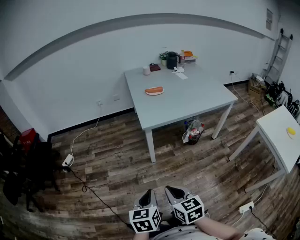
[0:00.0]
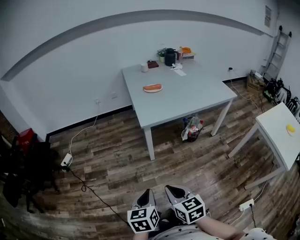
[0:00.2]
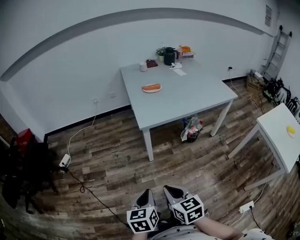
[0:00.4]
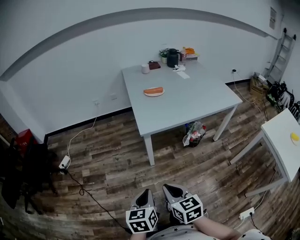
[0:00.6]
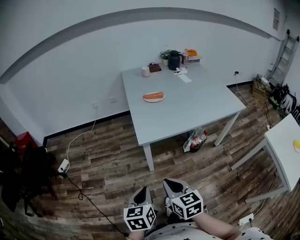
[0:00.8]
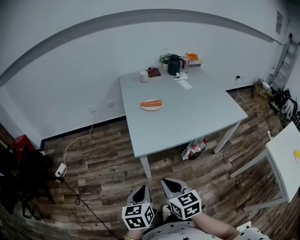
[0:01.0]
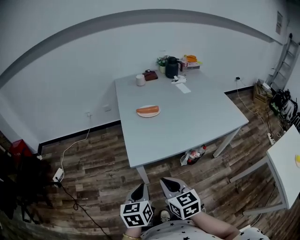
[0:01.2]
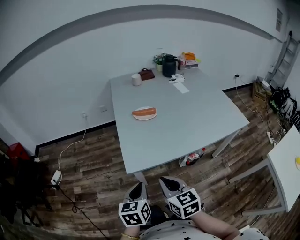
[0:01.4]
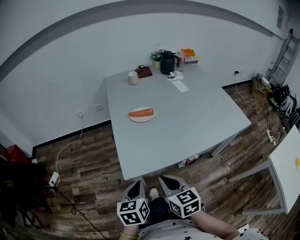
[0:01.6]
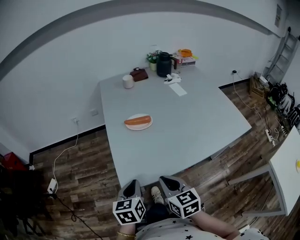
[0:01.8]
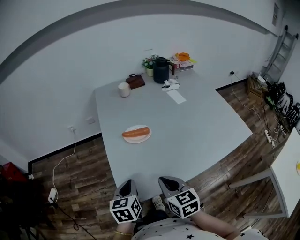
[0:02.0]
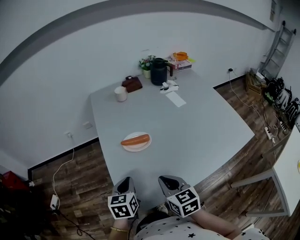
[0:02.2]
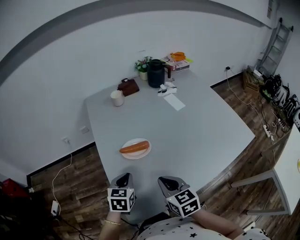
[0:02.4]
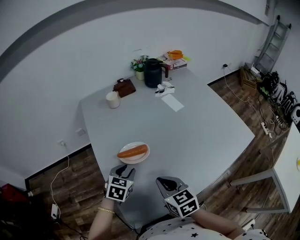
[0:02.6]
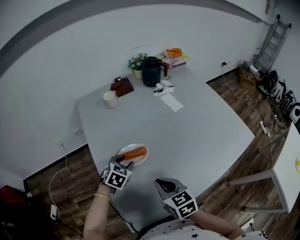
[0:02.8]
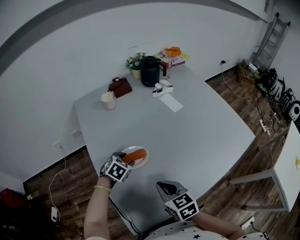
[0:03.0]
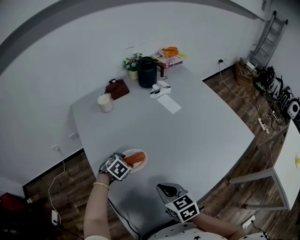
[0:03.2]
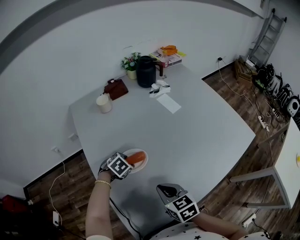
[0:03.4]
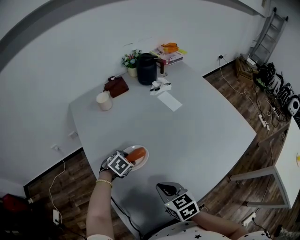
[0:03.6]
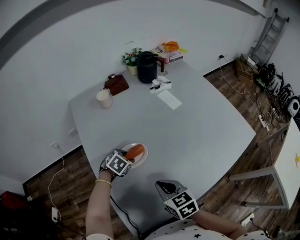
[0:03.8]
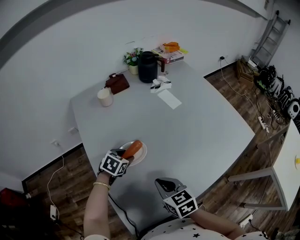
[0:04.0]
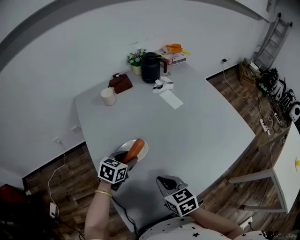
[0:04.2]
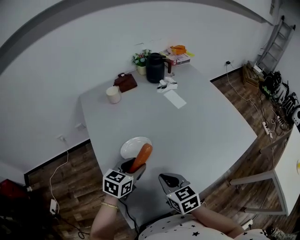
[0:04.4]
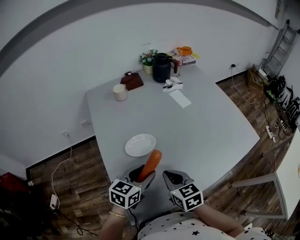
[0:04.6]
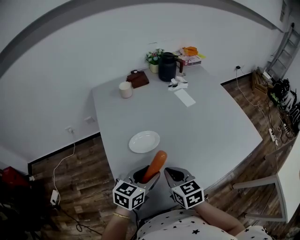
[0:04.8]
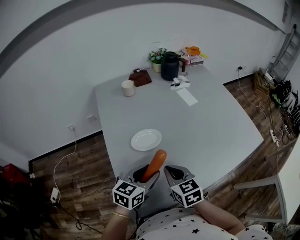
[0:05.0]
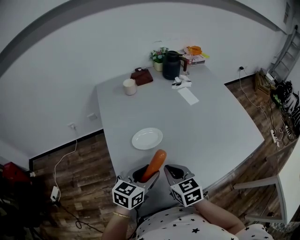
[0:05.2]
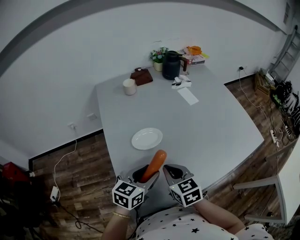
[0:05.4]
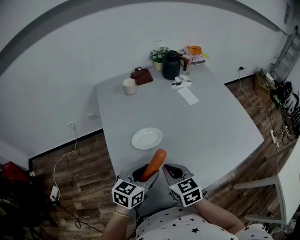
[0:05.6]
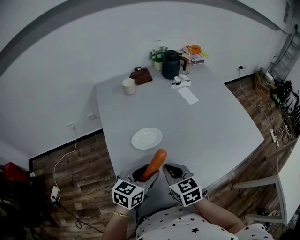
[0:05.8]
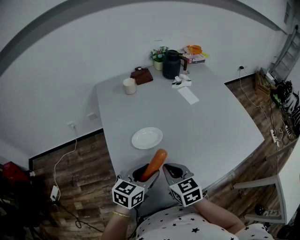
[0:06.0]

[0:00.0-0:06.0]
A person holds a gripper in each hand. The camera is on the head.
0:00.0 to 0:01.6: The two grippers travel together, forward, about 40 cm.
0:01.6 to 0:03.0: The right gripper heads forward, covering about 30 cm, while the left gripper is displaced forward by about 50 cm, rolls clockwise, seen from behind, by some 50 degrees, and opens its fingers.
0:03.0 to 0:04.4: The left gripper goes about 10 cm upward and backward, and turns by roughly 30 degrees.
0:04.4 to 0:06.0: The left gripper goes roughly 10 cm backward.

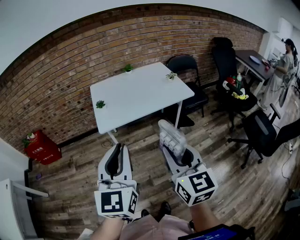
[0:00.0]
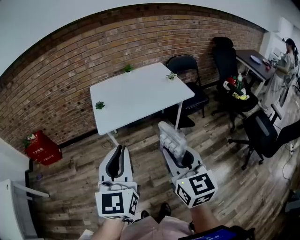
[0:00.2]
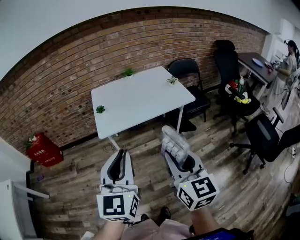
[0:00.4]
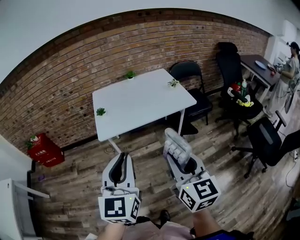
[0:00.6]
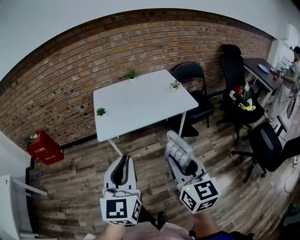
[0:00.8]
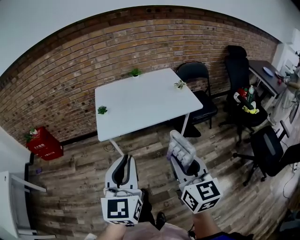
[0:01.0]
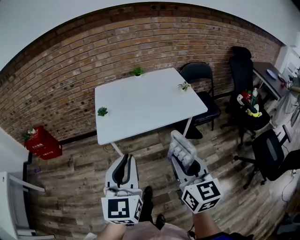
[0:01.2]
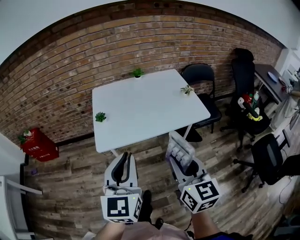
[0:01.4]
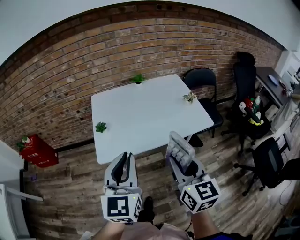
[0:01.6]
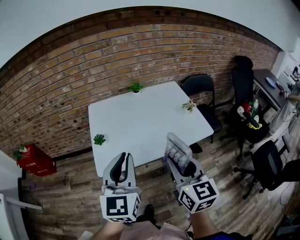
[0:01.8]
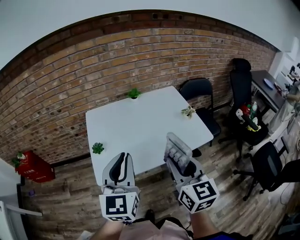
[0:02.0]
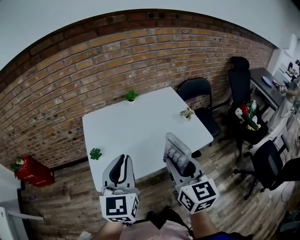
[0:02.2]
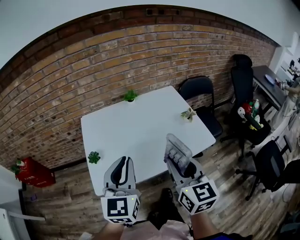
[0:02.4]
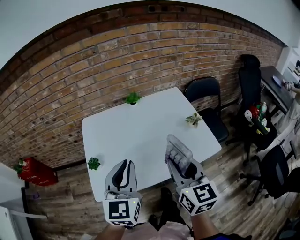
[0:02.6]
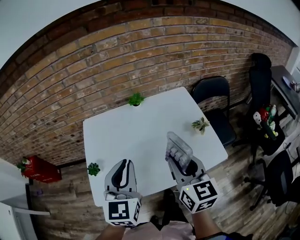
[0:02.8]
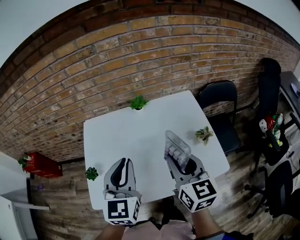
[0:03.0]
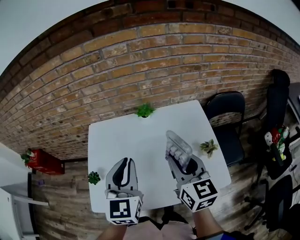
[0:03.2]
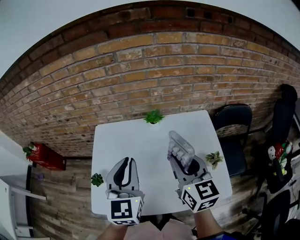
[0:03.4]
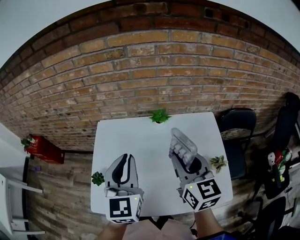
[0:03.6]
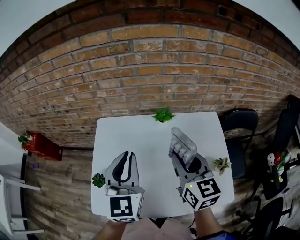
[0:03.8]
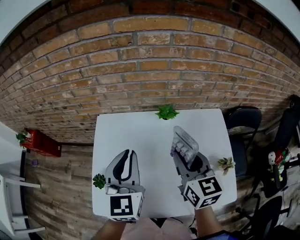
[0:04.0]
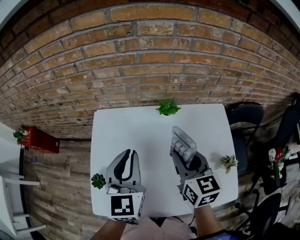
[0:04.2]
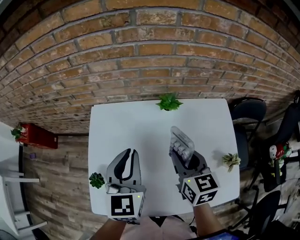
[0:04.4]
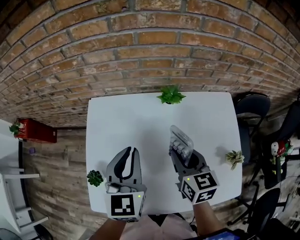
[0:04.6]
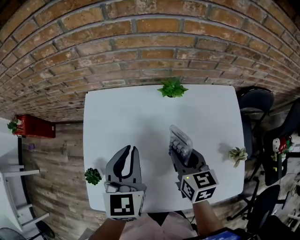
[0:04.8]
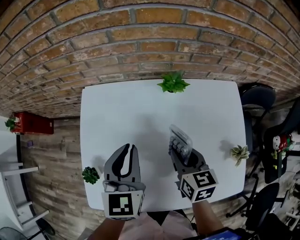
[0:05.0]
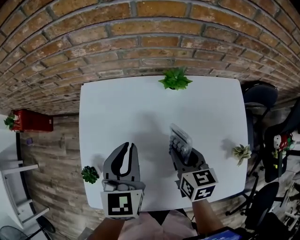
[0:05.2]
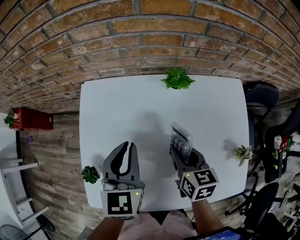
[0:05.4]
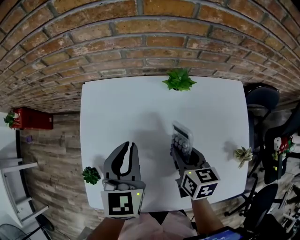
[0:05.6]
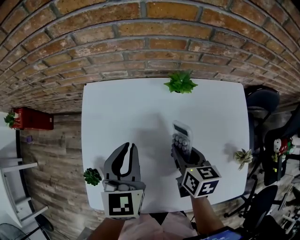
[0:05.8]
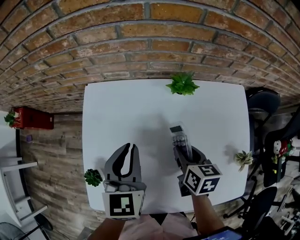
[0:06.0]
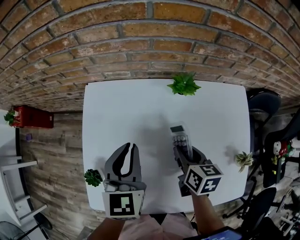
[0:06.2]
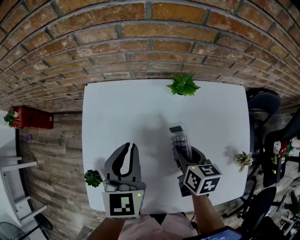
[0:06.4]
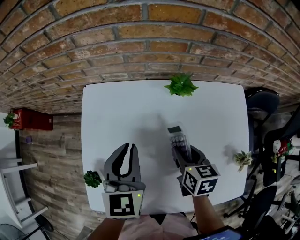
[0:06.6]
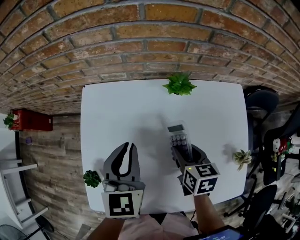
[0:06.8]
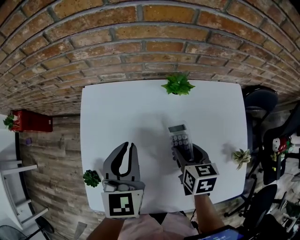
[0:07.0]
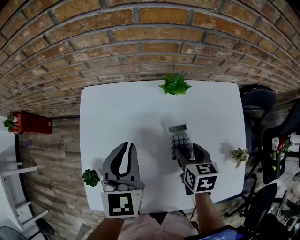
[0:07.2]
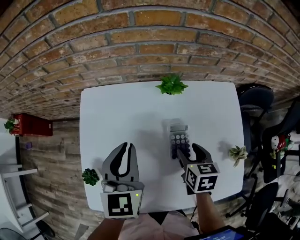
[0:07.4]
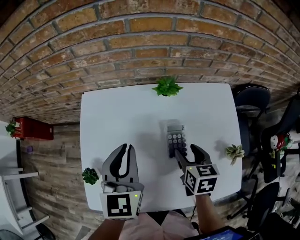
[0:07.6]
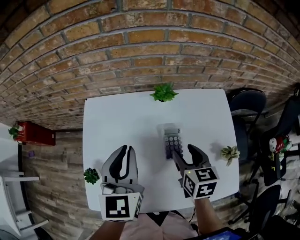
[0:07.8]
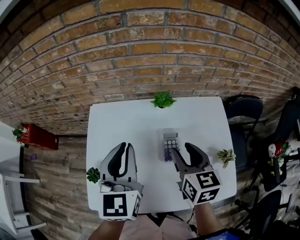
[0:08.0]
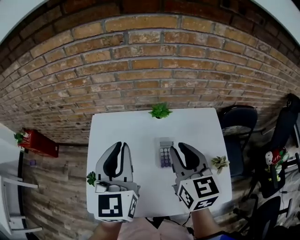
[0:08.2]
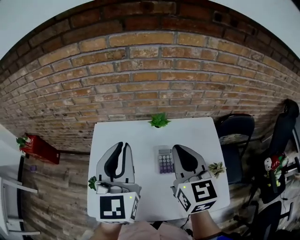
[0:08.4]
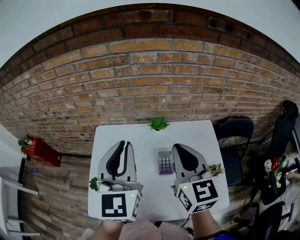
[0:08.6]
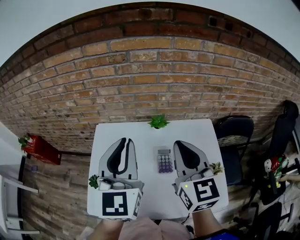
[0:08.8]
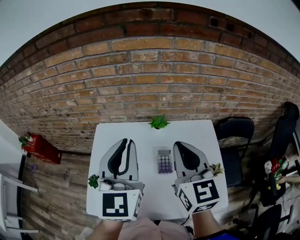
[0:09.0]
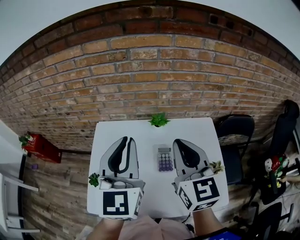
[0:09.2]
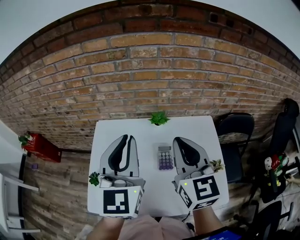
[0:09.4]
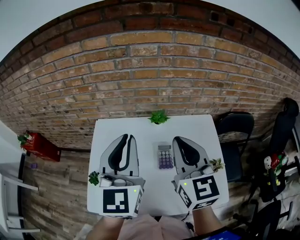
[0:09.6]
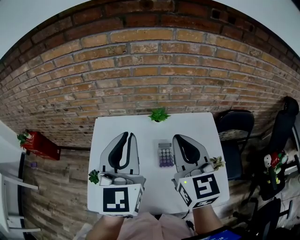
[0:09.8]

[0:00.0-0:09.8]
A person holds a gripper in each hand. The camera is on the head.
0:00.0 to 0:01.4: Both grippers move forward, about 15 cm.
0:01.4 to 0:02.8: The grippers both shift forward by about 30 cm.
0:02.8 to 0:04.2: The two grippers go roughly 20 cm forward.
0:04.2 to 0:05.6: The left gripper shifts roughly 10 cm downward. The right gripper shifts some 15 cm downward, and turns by approximately 20 degrees.
0:05.6 to 0:07.0: The grippers move only a little.
0:07.0 to 0:08.4: Both grippers travel together upward, roughly 25 cm. The left gripper changes its angle by roughly 20 degrees; the right gripper tilts its fingers some 40 degrees upward, and closes up.
0:08.4 to 0:09.8: The grippers stay close to where they were, moving slightly.

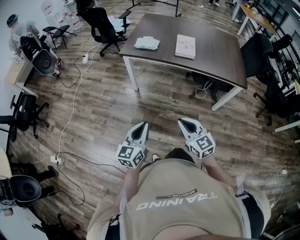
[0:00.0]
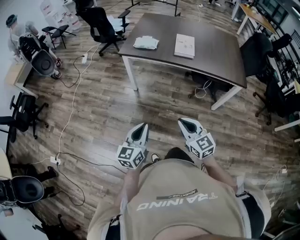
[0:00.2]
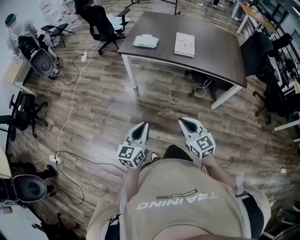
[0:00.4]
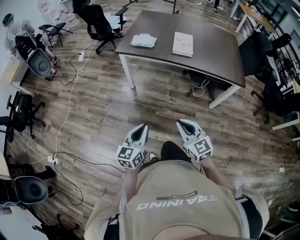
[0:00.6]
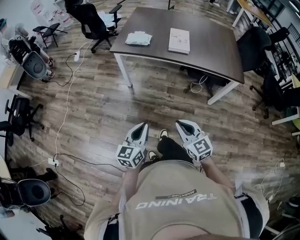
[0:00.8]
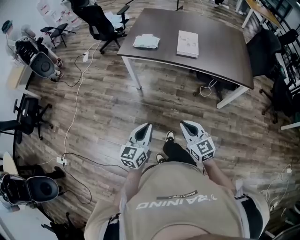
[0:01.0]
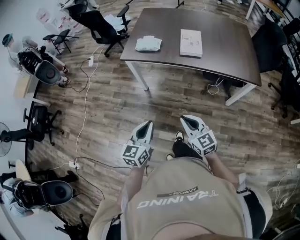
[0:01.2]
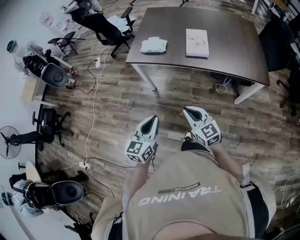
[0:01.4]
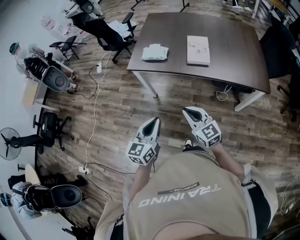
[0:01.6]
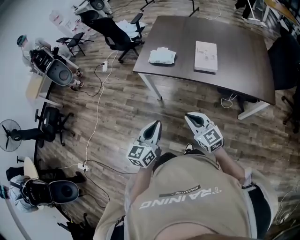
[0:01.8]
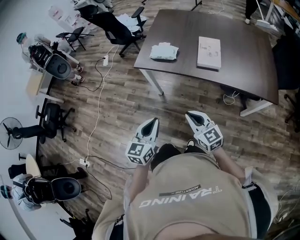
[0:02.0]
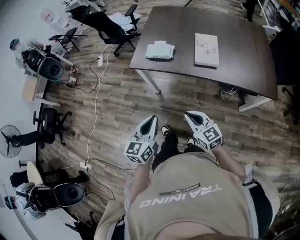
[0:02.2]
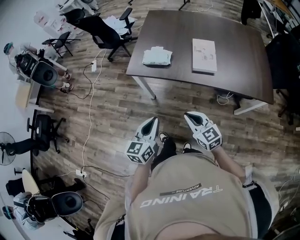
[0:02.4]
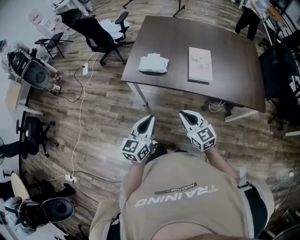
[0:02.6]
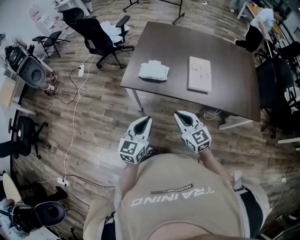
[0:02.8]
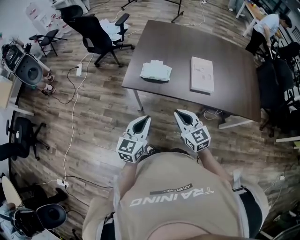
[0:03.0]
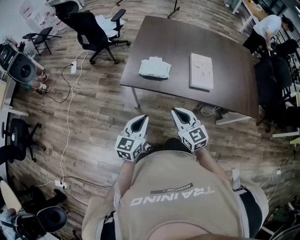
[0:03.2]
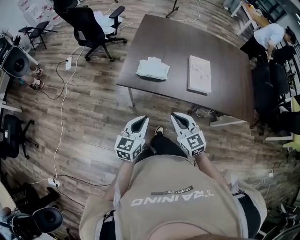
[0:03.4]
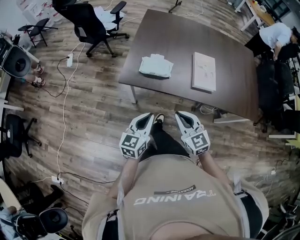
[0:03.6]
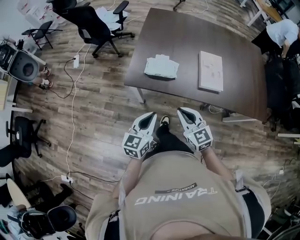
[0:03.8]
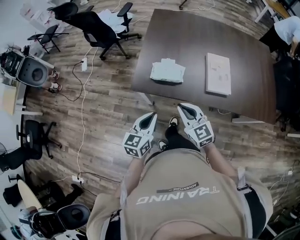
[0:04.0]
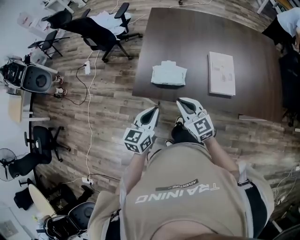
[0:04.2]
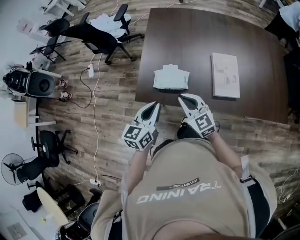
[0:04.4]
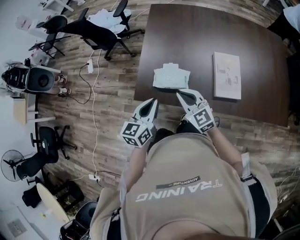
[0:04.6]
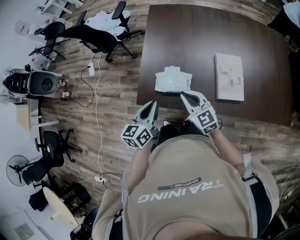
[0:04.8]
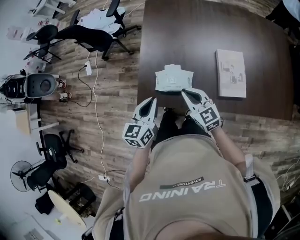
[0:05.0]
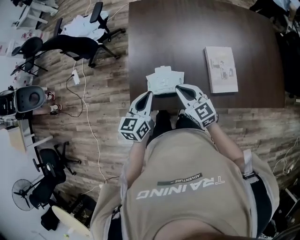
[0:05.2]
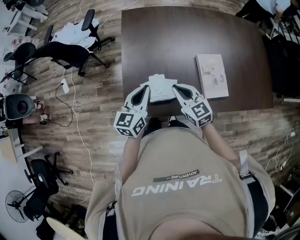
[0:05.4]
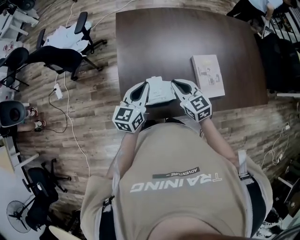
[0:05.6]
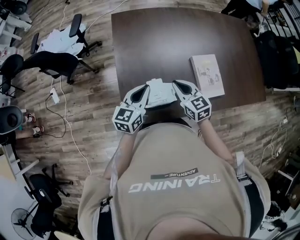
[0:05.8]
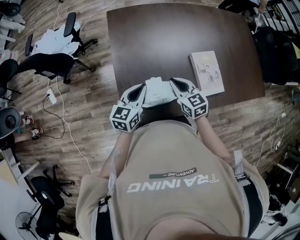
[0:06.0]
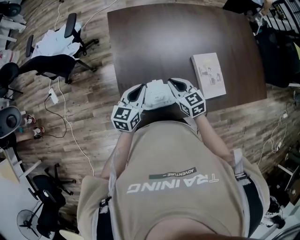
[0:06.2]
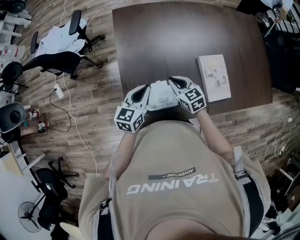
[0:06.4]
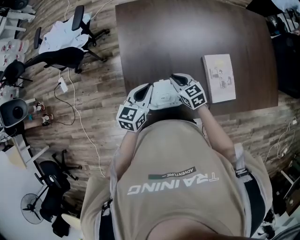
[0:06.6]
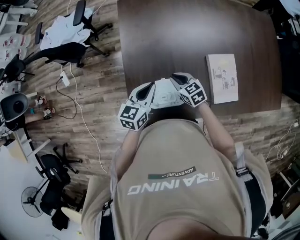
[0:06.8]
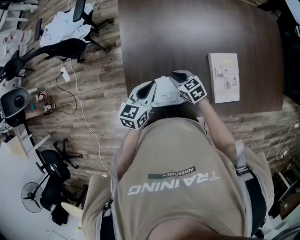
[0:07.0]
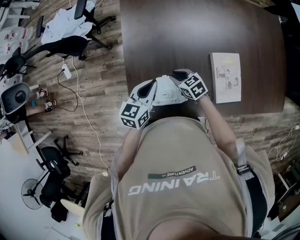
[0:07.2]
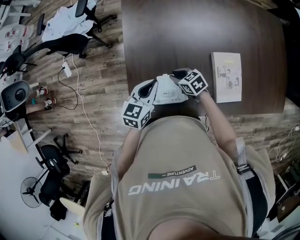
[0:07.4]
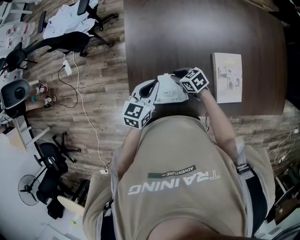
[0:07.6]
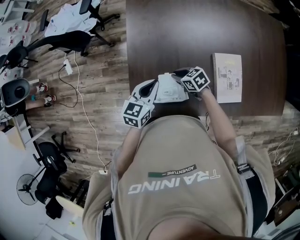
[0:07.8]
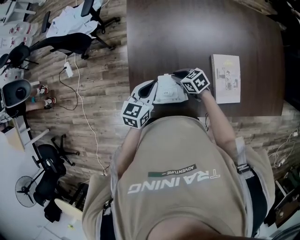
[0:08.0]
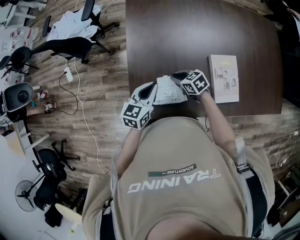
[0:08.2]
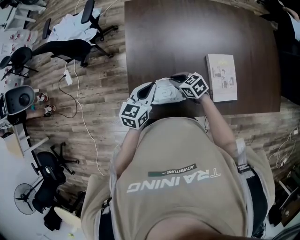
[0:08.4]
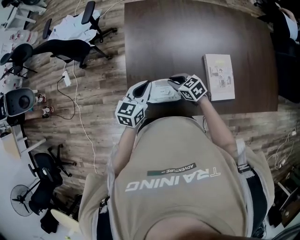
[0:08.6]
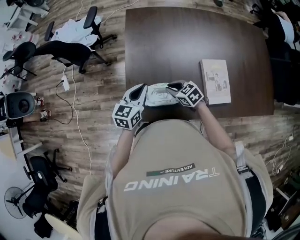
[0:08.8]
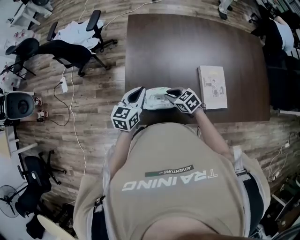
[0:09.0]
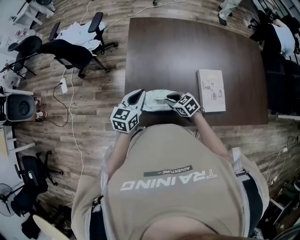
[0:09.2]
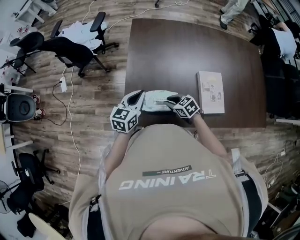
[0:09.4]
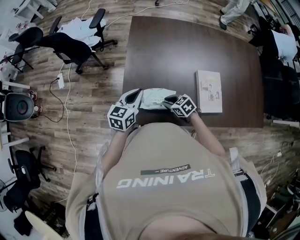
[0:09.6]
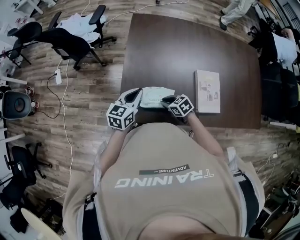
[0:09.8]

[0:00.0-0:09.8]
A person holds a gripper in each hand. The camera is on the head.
0:00.0 to 0:01.4: Both grippers travel together forward, approximately 15 cm.
0:01.4 to 0:02.8: Both grippers travel together forward, roughly 20 cm.
0:02.8 to 0:04.2: The two grippers go approximately 20 cm forward.
0:04.2 to 0:05.6: The two grippers go some 25 cm forward.
0:05.6 to 0:07.0: The right gripper shifts approximately 20 cm downward and forward, and swivels some 30 degrees. The left gripper goes approximately 10 cm downward and forward.
0:07.0 to 0:08.4: The grippers make only small movements.
0:08.4 to 0:09.8: The left gripper moves about 5 cm, while the right gripper shifts about 10 cm backward.
